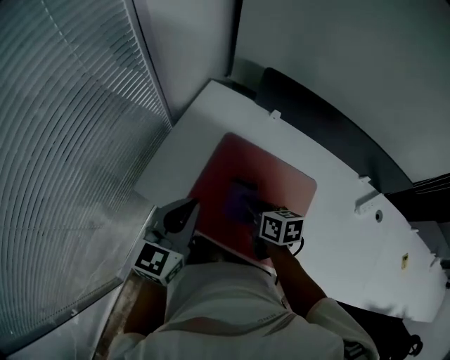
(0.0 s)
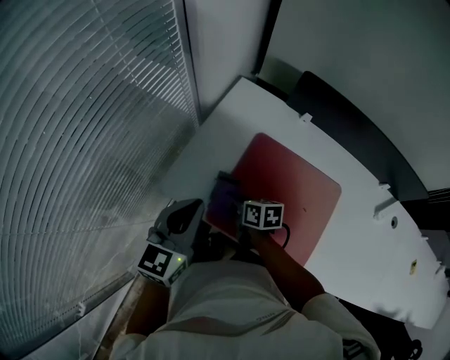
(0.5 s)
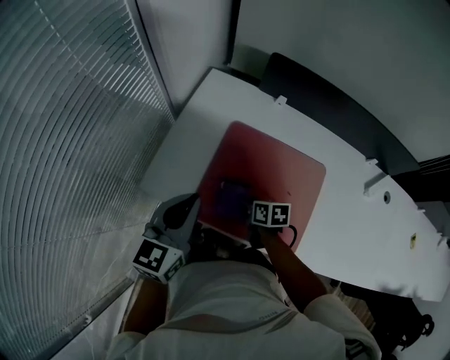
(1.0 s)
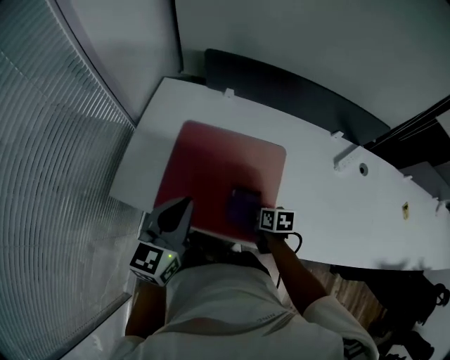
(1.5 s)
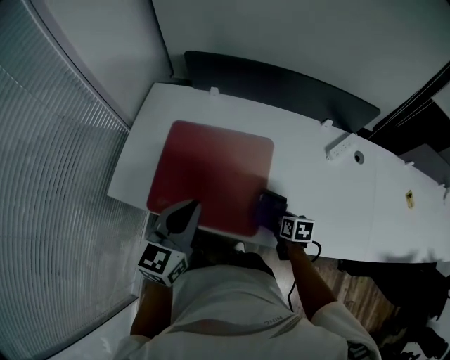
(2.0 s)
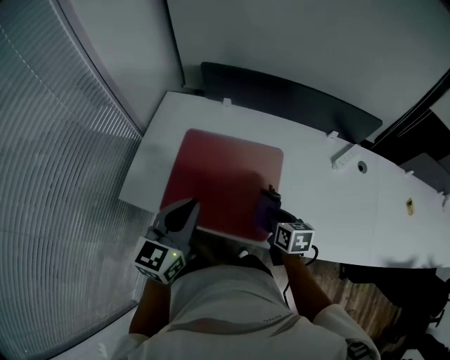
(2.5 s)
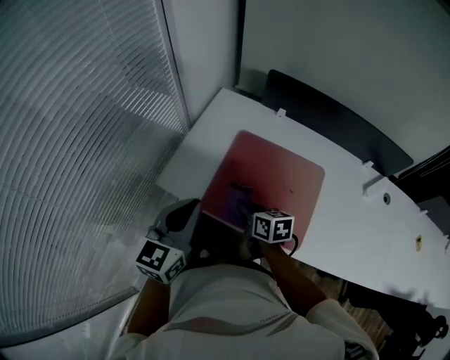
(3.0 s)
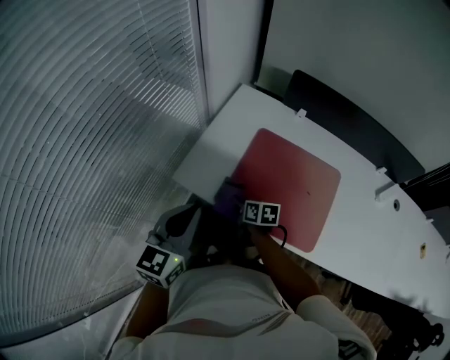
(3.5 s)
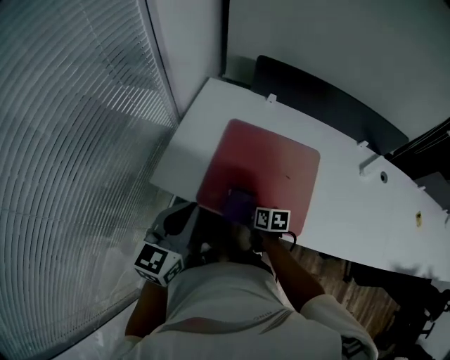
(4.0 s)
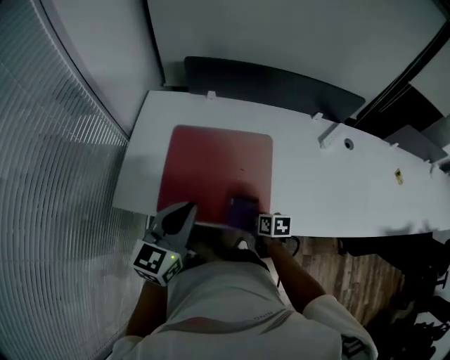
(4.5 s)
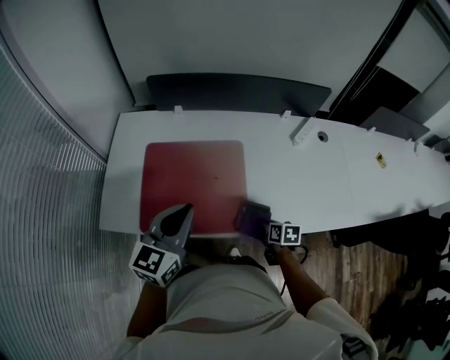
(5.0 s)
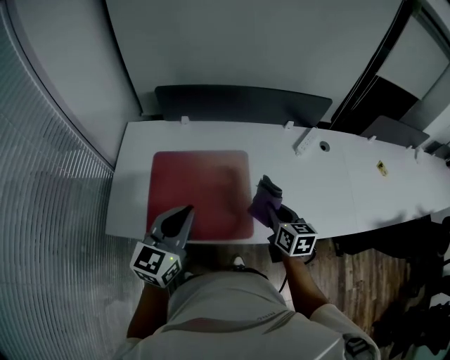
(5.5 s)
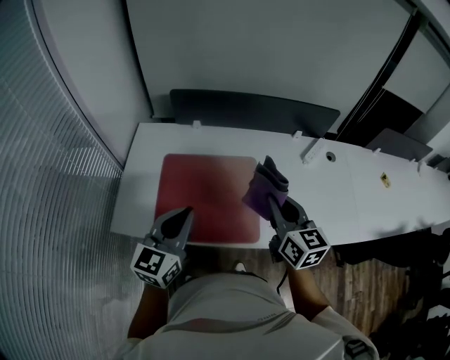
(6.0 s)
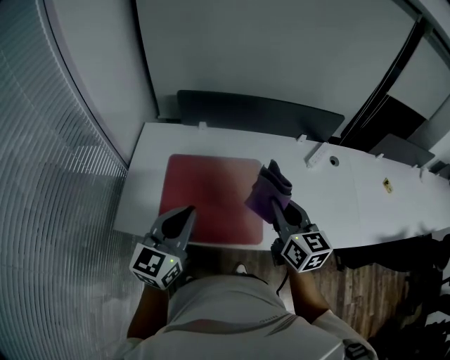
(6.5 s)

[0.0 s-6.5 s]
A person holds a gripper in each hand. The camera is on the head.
0.0 to 2.0 s: The left gripper moves about 20 cm; the right gripper moves approximately 35 cm, and turns by roughly 30 degrees.
2.0 to 4.5 s: The left gripper moves some 30 cm to the left and comes back. Meanwhile the right gripper goes roughly 15 cm to the left.
4.5 to 6.5 s: The right gripper goes about 30 cm upward, and tips its fingers upward by roughly 40 degrees. The left gripper goes some 5 cm upward, and travels to the right and back again, approximately 10 cm each way.

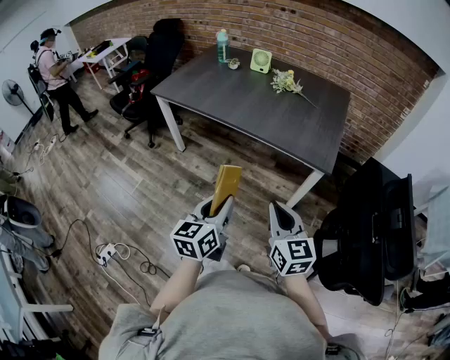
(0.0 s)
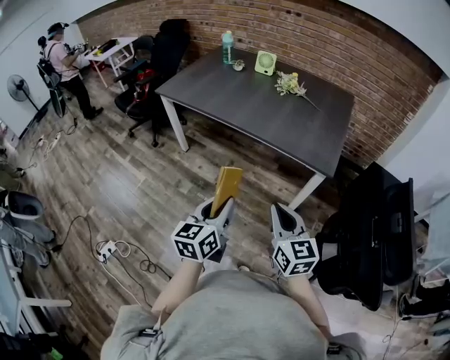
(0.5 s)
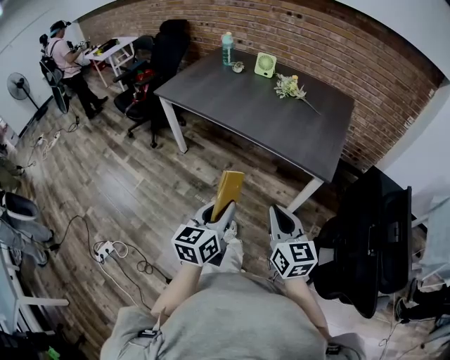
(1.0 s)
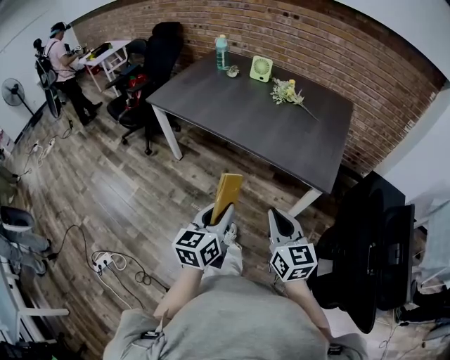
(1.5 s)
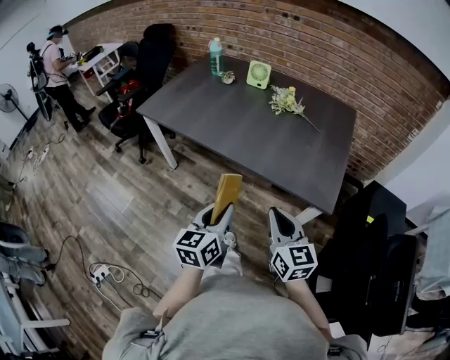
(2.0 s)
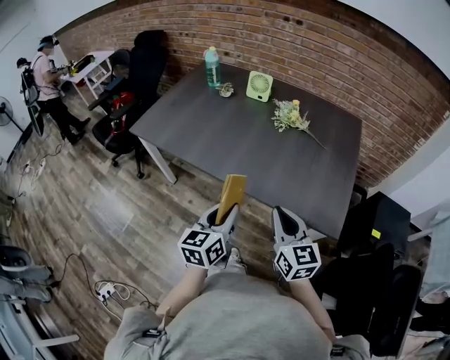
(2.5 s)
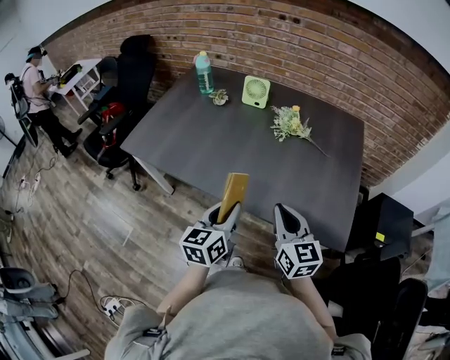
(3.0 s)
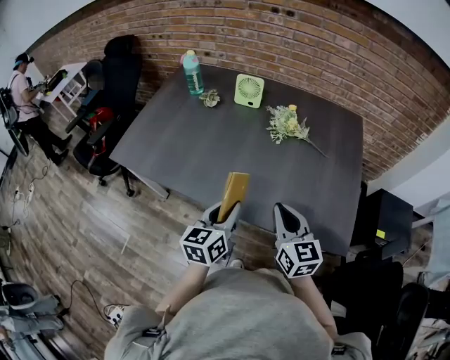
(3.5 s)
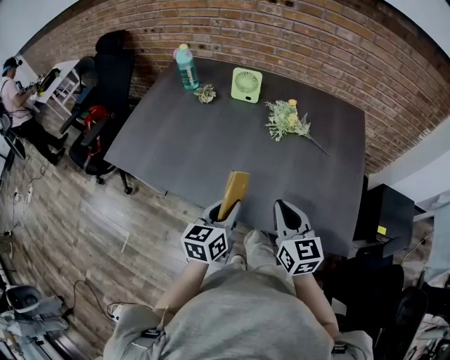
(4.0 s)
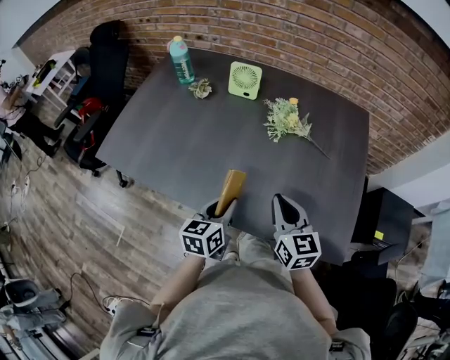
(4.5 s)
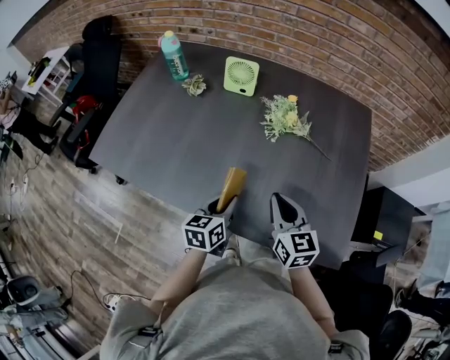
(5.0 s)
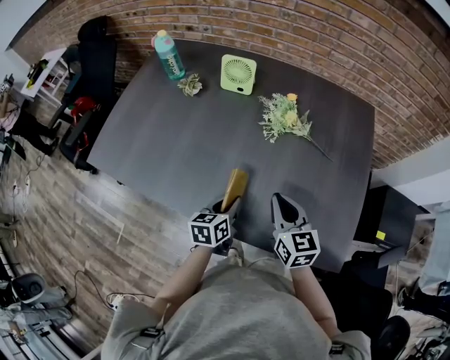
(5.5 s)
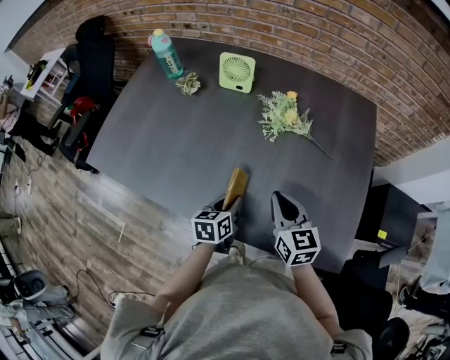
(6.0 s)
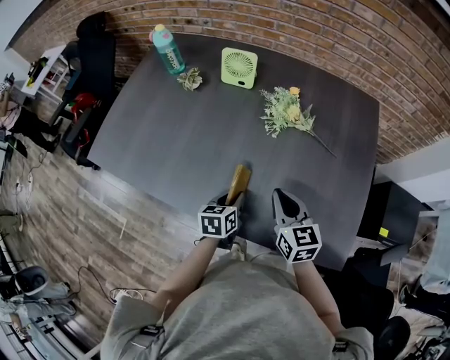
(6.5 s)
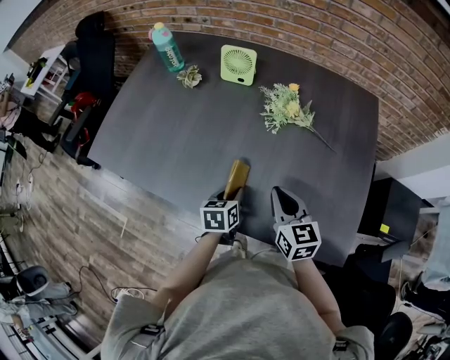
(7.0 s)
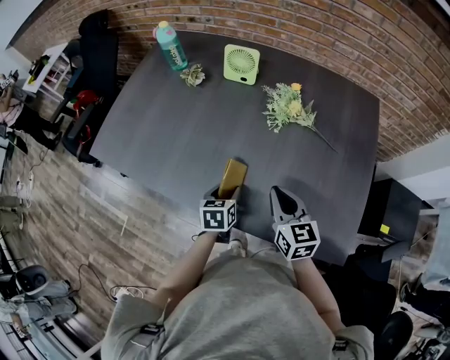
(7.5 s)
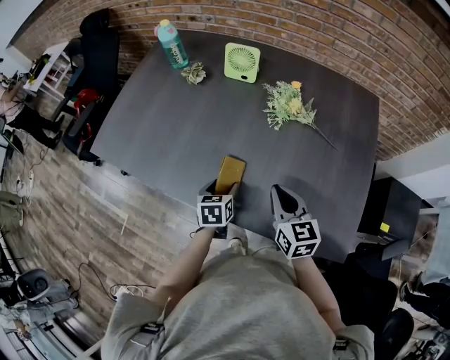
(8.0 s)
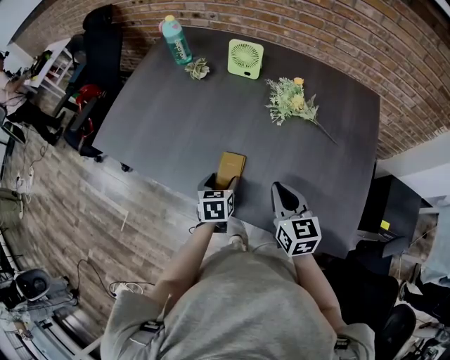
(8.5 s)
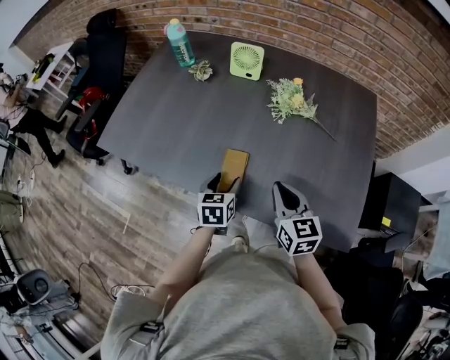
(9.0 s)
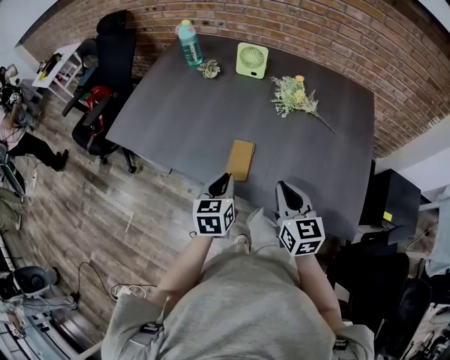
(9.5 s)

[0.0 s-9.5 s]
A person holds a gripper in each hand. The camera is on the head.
0.0 to 2.0 s: Both grippers travel together forward, some 20 cm.
2.0 to 4.0 s: The grippers both shift forward by about 30 cm.
4.0 to 5.5 s: The left gripper shifts approximately 15 cm downward and forward. Meanwhile the right gripper moves forward and downward, roughly 10 cm.
5.5 to 7.5 s: The grippers stay close to where they were, moving slightly.
7.5 to 9.5 s: The right gripper heads backward, covering approximately 10 cm. Meanwhile the left gripper travels upward, backward and to the left by roughly 15 cm, and closes.

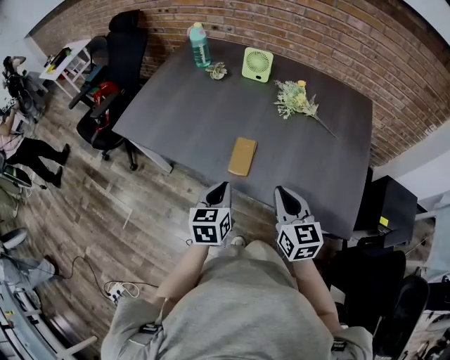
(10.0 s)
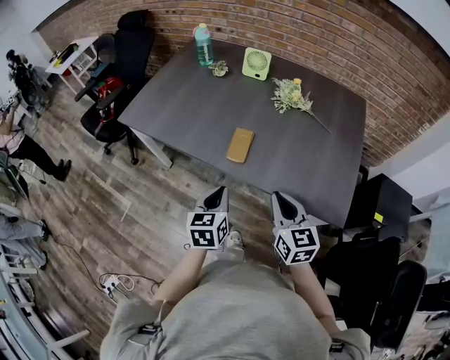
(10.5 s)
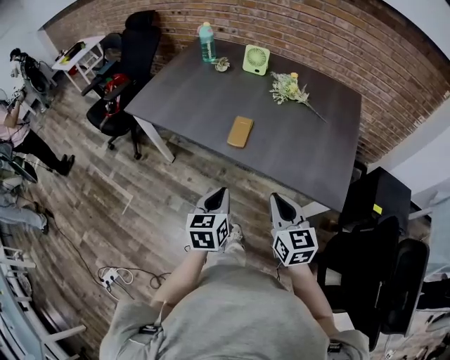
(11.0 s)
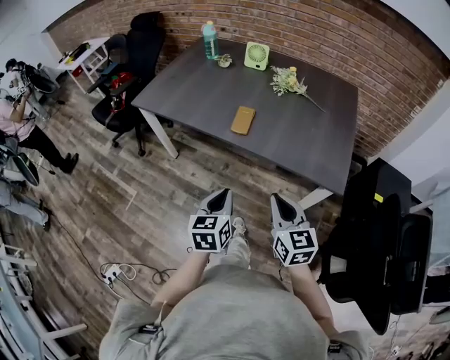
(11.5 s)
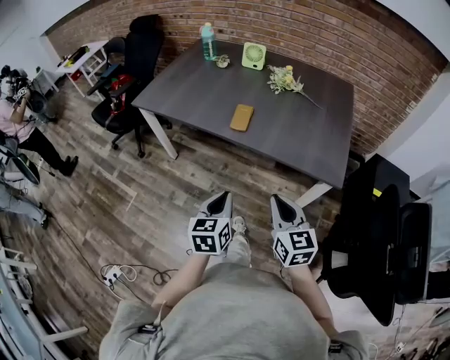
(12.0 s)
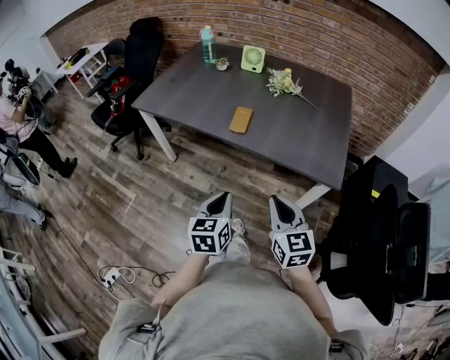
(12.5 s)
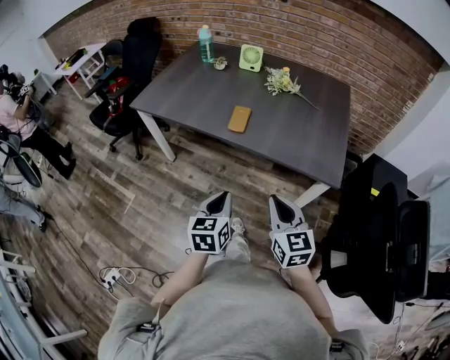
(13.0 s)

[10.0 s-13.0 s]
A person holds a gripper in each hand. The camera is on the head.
10.0 to 11.5 s: The two grippers go some 25 cm backward.
11.5 to 13.0 s: The grippers make only small movements.

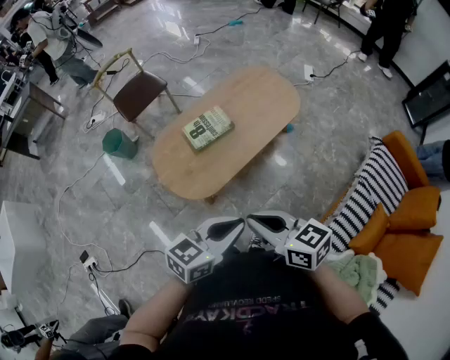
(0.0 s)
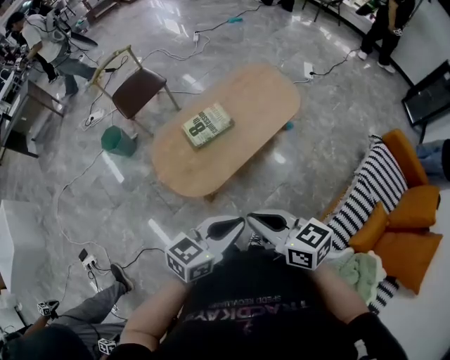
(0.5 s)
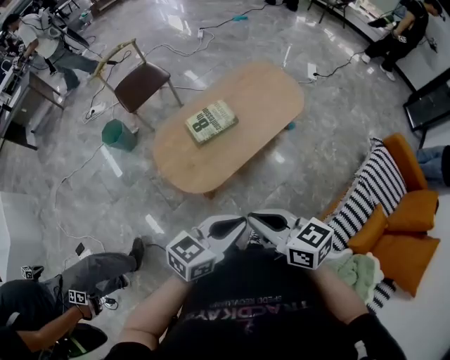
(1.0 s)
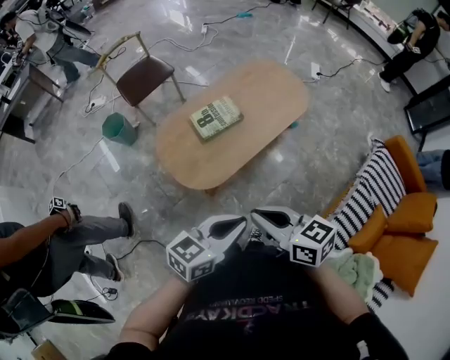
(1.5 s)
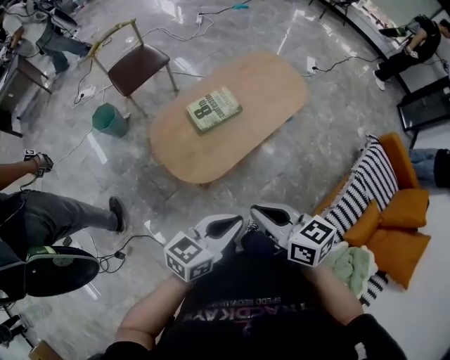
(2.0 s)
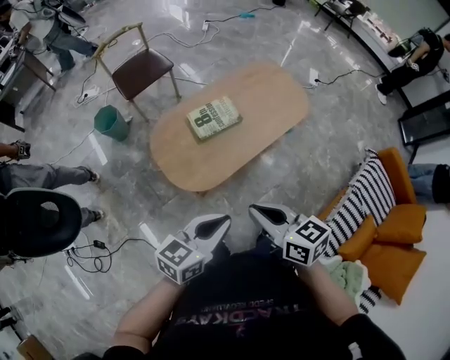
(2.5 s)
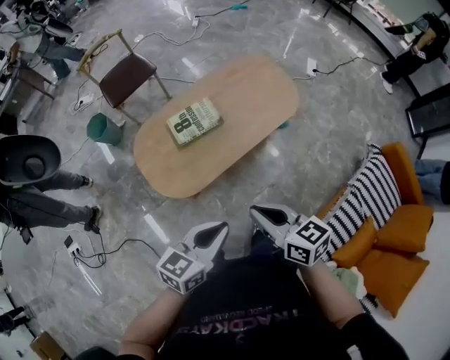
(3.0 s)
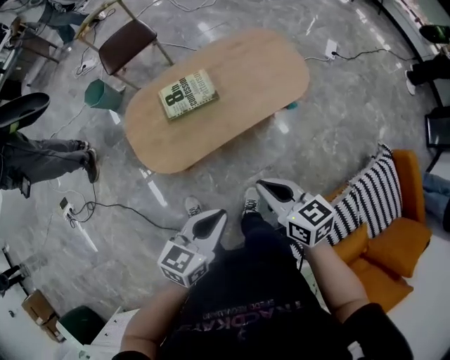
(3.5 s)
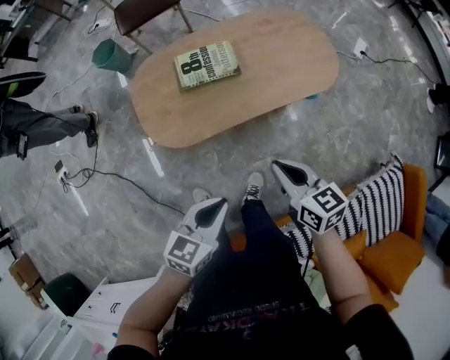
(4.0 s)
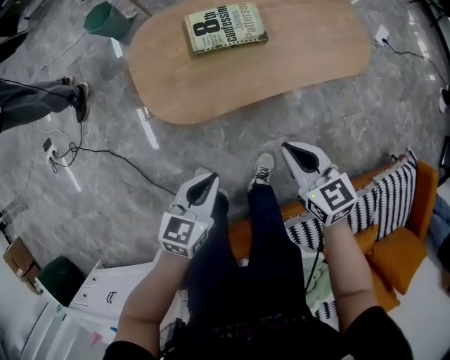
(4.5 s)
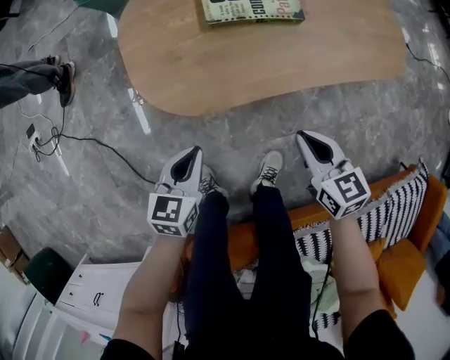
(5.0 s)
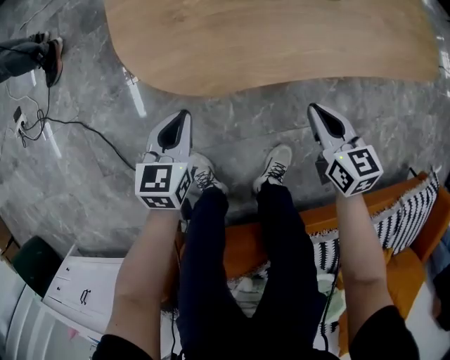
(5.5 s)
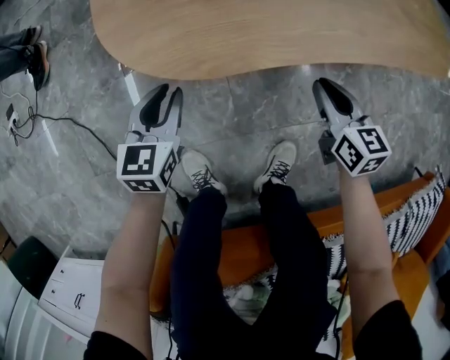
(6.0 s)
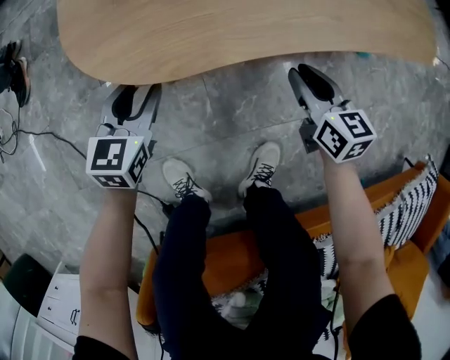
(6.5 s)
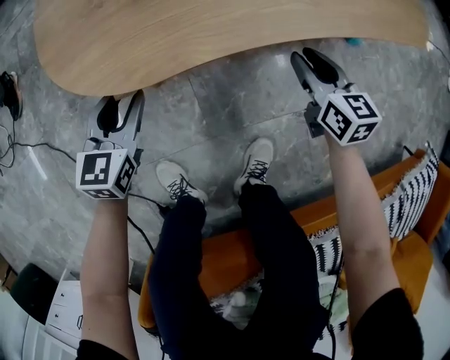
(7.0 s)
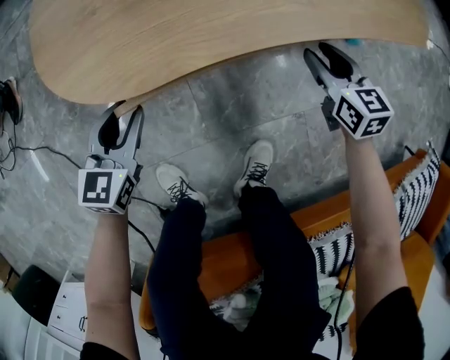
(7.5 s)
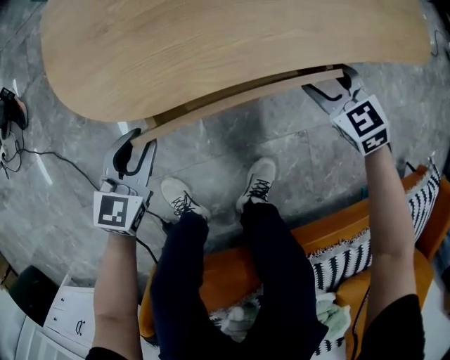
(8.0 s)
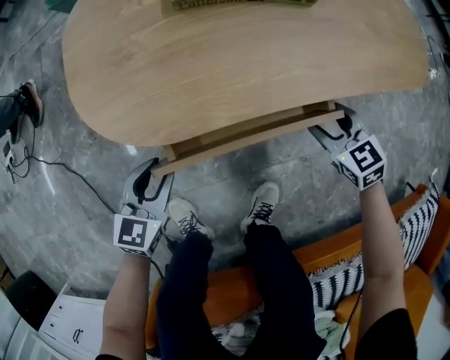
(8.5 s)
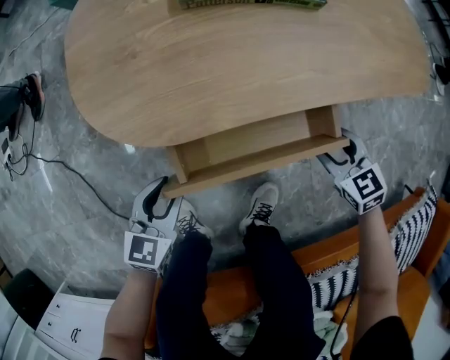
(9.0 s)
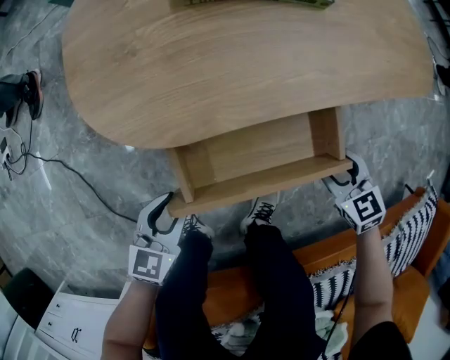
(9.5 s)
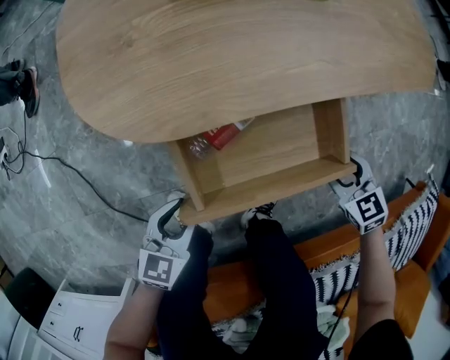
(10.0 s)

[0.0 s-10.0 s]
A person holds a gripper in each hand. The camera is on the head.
0.0 to 2.0 s: The two grippers go approximately 10 cm to the left.
2.0 to 4.0 s: The right gripper travels to the right, downward and forward by approximately 35 cm; the left gripper is displaced to the right and downward by some 25 cm, and turns by roughly 30 degrees.
4.0 to 6.0 s: The right gripper heads downward, covering roughly 40 cm; the left gripper is displaced downward and to the left by some 50 cm, rotates about 30 degrees, and opens up.
6.0 to 8.0 s: The right gripper heads to the right, covering about 10 cm, changes its angle by some 40 degrees, and opens up.
8.0 to 10.0 s: Both grippers move backward, about 15 cm.
